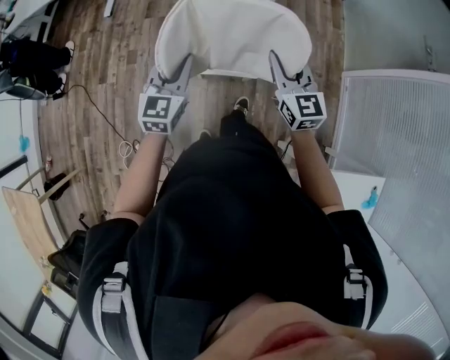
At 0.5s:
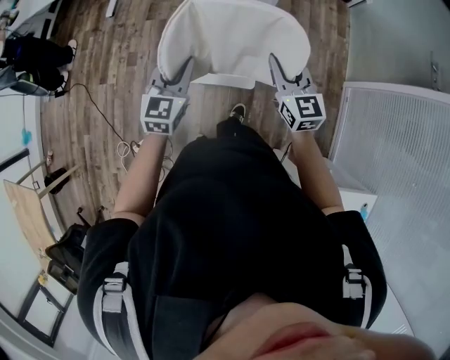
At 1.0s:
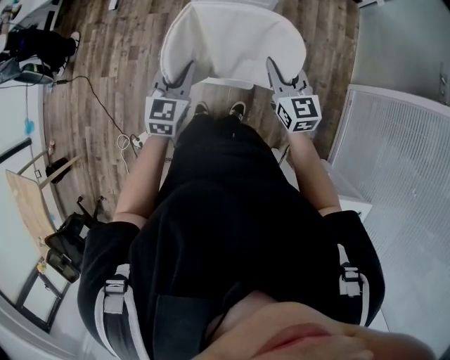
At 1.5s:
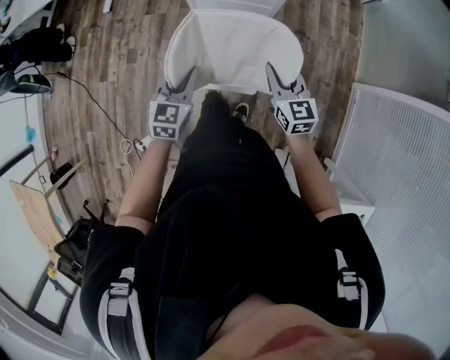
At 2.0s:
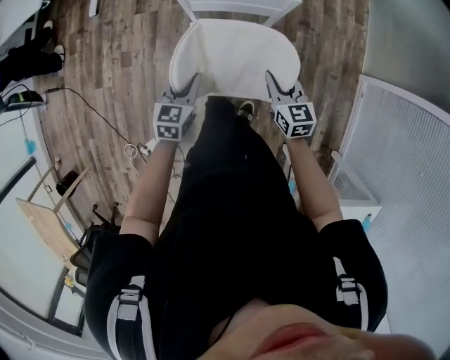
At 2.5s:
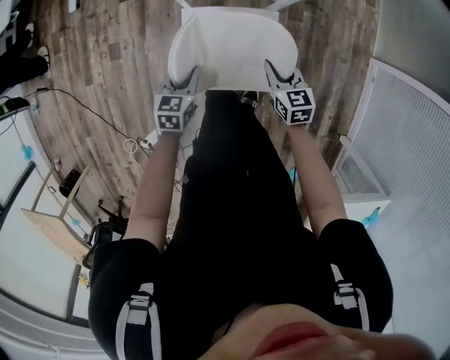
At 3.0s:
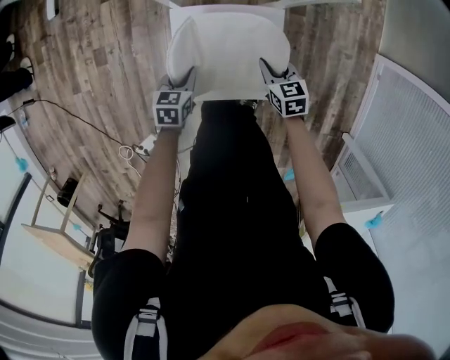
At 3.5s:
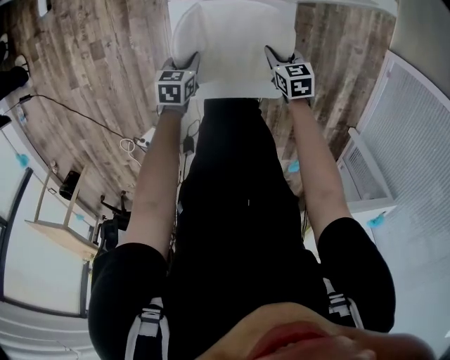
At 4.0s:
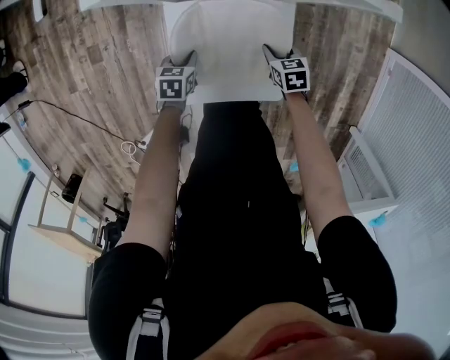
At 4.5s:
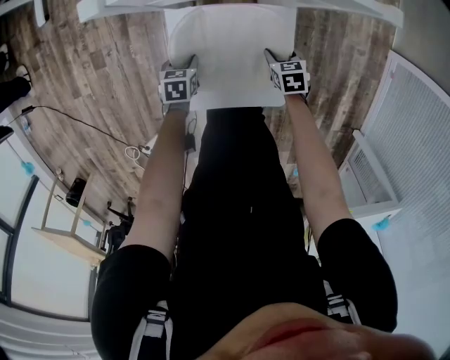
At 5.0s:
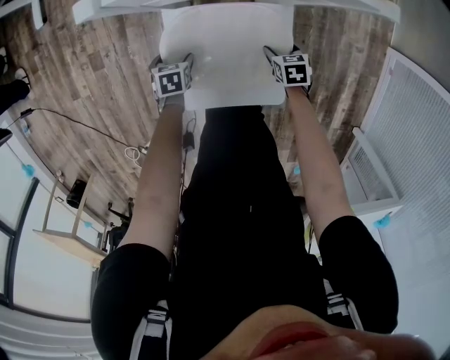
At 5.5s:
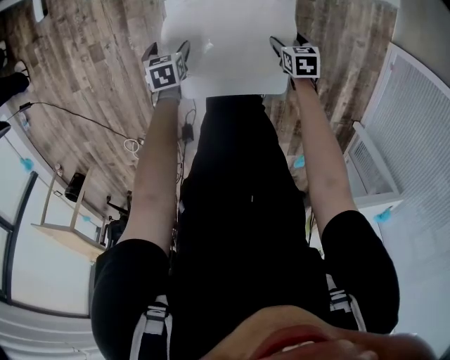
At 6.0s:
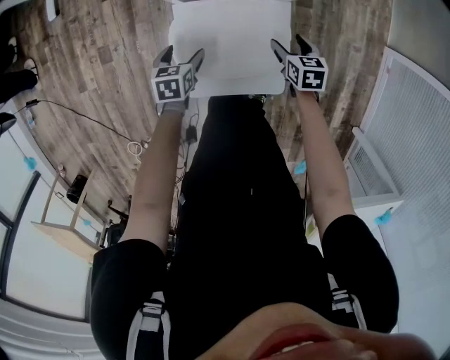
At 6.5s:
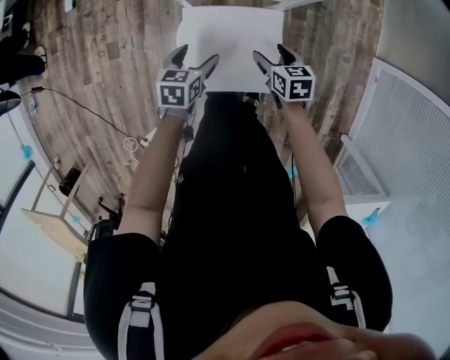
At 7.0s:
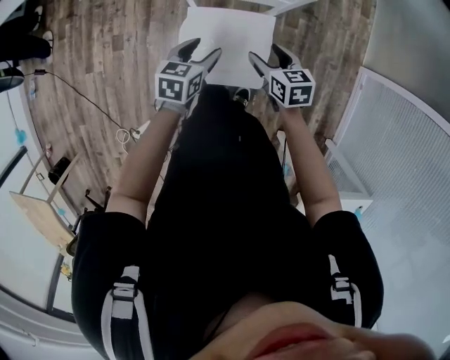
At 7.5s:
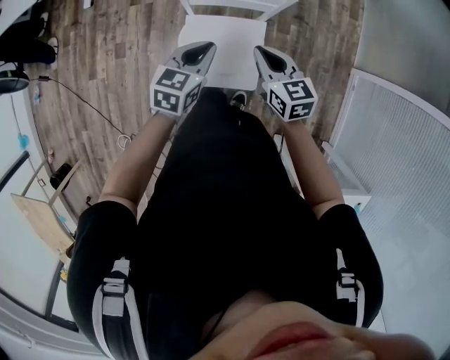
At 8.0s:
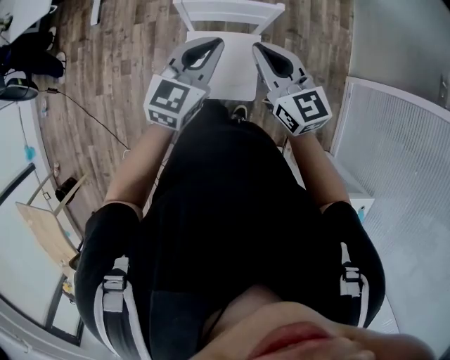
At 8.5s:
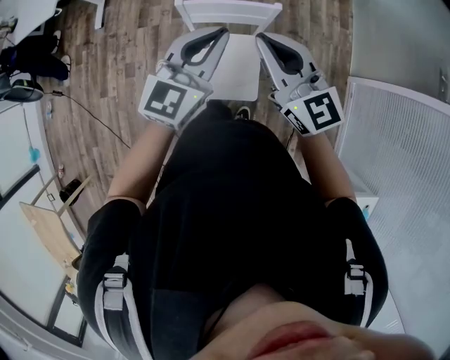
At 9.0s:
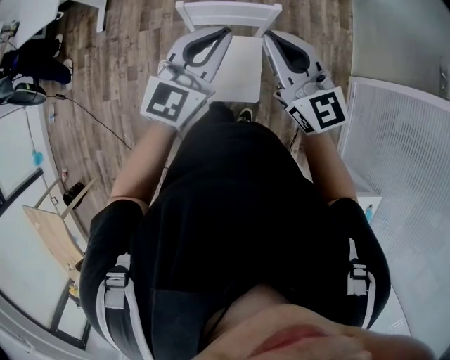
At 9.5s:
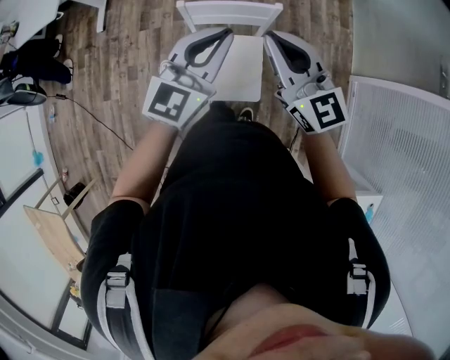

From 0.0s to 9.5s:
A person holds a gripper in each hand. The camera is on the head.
From 0.0s to 2.0s: The two grippers go some 30 cm downward and forward. The right gripper swivels approximately 20 degrees; the left gripper turns by approximately 20 degrees.
From 2.0s to 4.0s: Both grippers travel together downward, some 40 cm. The right gripper tips its fingers downward by roughly 30 degrees, while the left gripper changes its angle by some 30 degrees.
From 4.0s to 5.5s: The left gripper shifts by some 5 cm, and opens its fingers. The right gripper opens.
From 5.5s to 7.5s: Both grippers travel together upward, about 50 cm. The right gripper points its fingers about 40 degrees further upward, and closes, while the left gripper angles its fingers upward, by about 30 degrees, and closes.
From 7.5s to 9.5s: The two grippers go some 25 cm upward. The left gripper tips its fingers upward by approximately 30 degrees, while the right gripper tilts its fingers approximately 30 degrees upward.

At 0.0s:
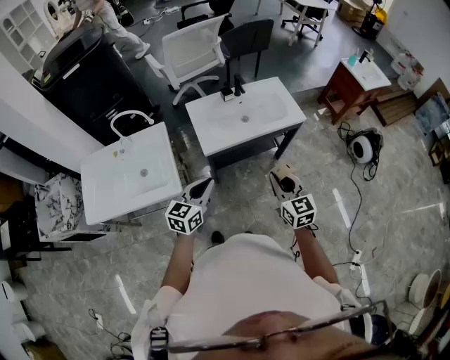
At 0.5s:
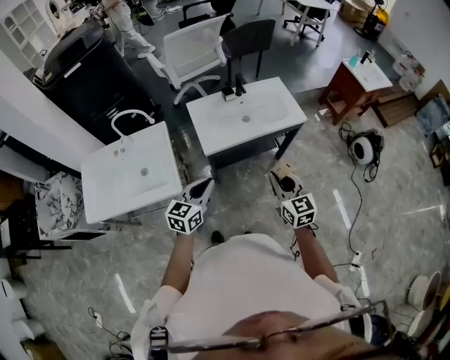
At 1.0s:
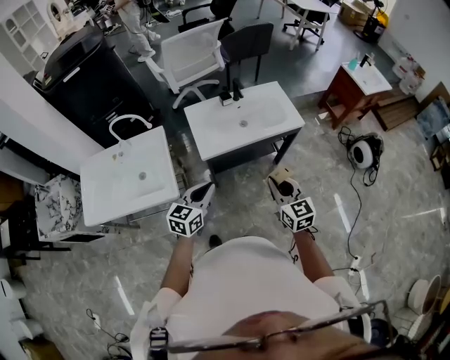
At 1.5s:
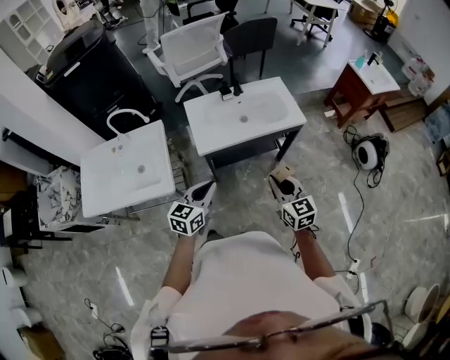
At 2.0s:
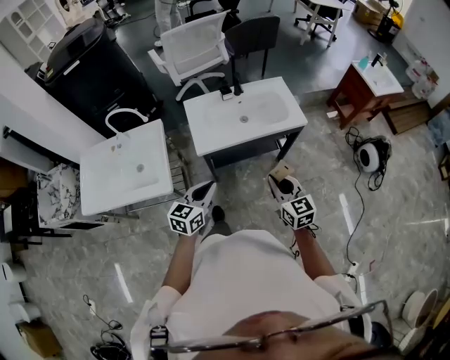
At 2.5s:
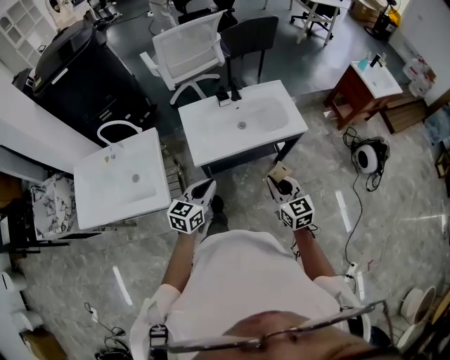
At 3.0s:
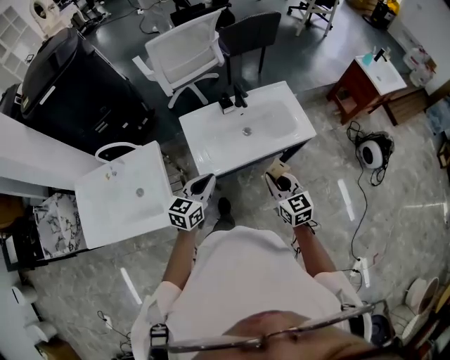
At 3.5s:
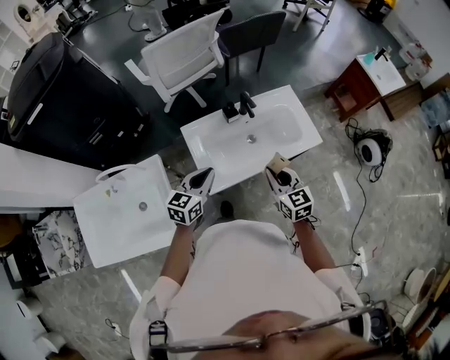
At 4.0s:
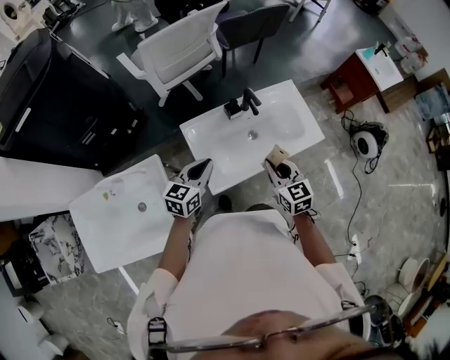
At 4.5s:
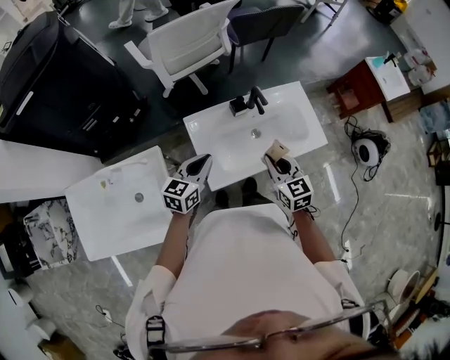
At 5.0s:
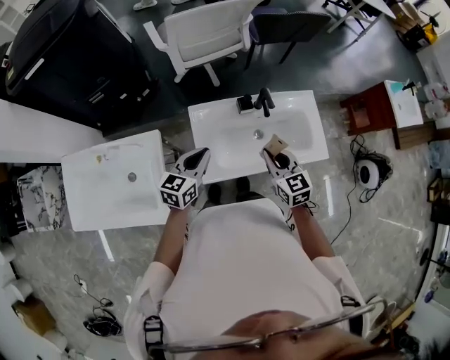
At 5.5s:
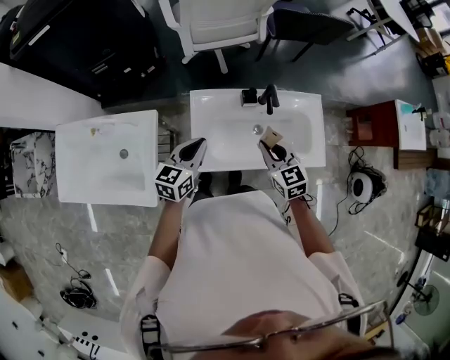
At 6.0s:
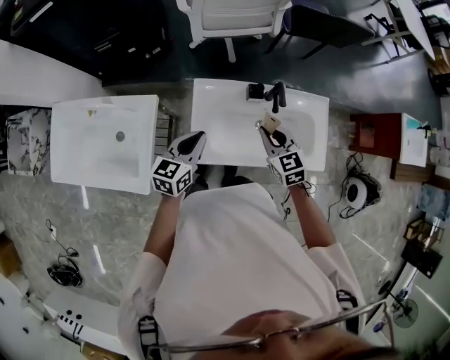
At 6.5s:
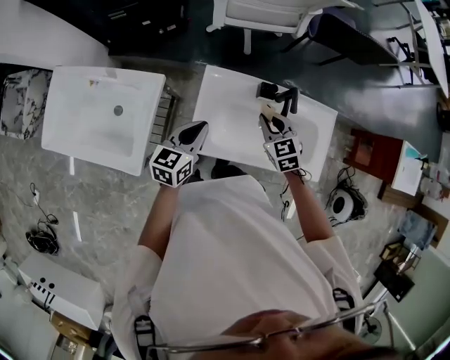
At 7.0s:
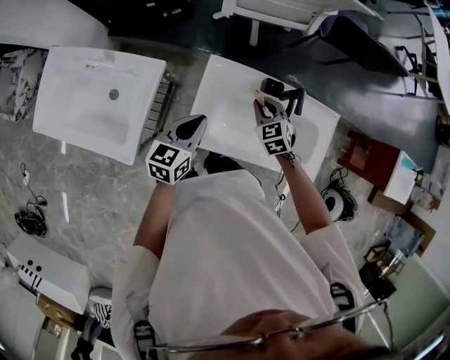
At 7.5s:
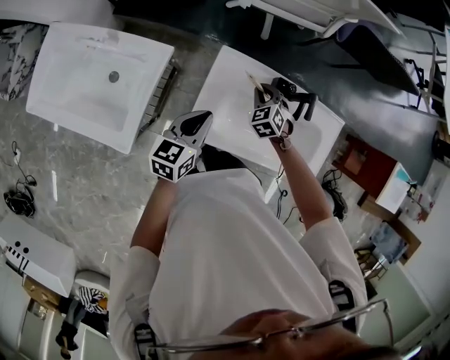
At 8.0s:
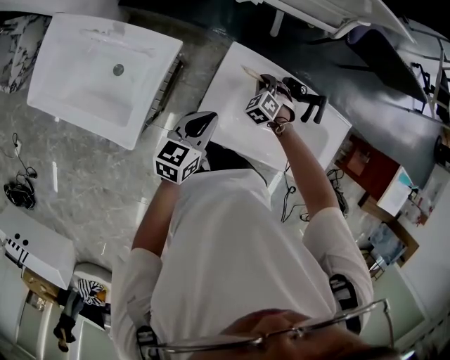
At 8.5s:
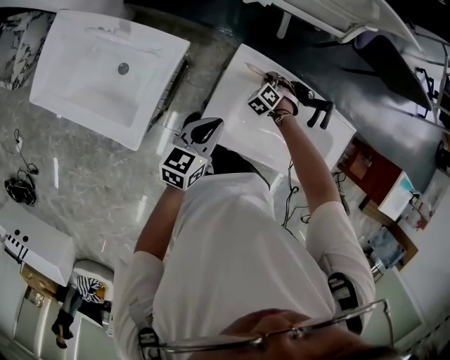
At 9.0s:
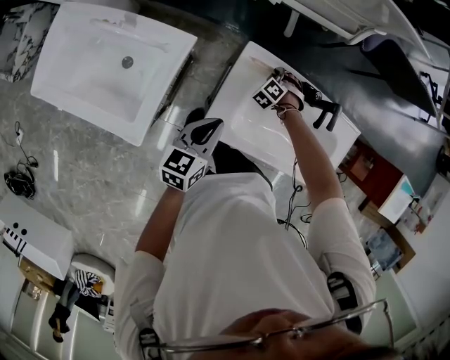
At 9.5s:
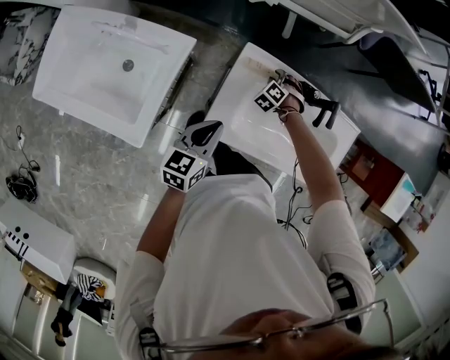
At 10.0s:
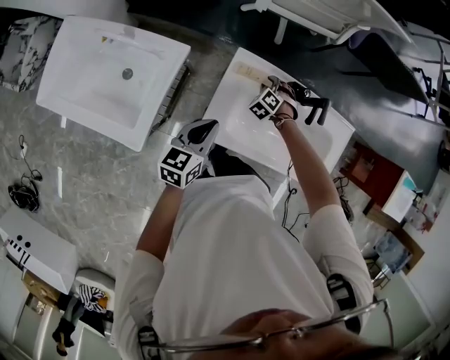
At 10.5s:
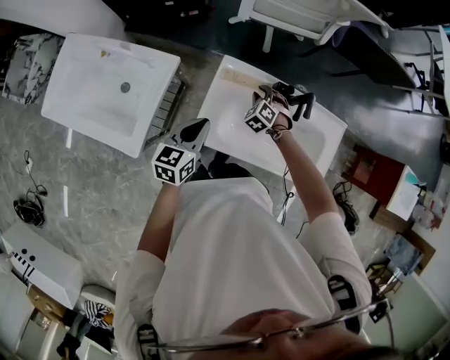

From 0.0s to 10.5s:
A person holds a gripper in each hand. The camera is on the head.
From 0.0s to 2.0s: Both grippers move to the right, roughly 5 cm.
From 2.0s to 4.0s: Both grippers travel together forward and to the left, about 35 cm.
From 4.0s to 6.5s: The right gripper ends up roughly 20 cm from where it was, and swivels roughly 40 degrees. The left gripper changes its angle by approximately 30 degrees.
From 6.5s to 8.5s: The right gripper heads downward and forward, covering some 25 cm, and changes its angle by roughly 50 degrees; the left gripper goes approximately 5 cm downward.
From 8.5s to 10.5s: The right gripper heads upward, covering about 10 cm.

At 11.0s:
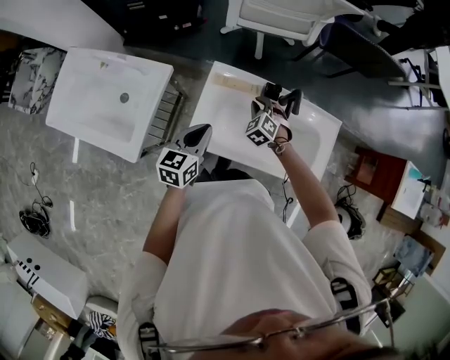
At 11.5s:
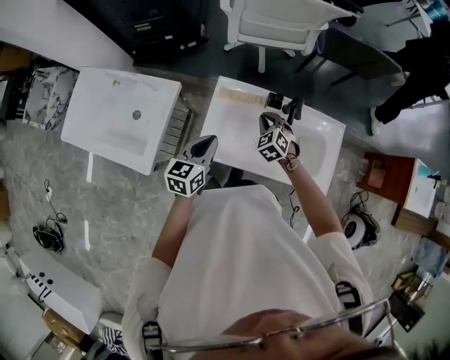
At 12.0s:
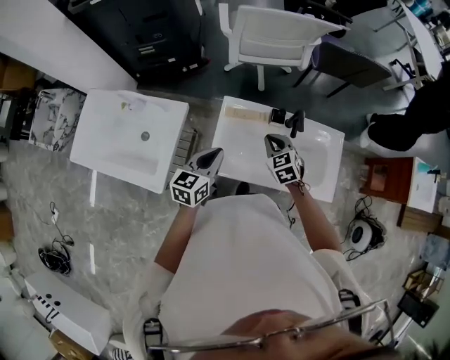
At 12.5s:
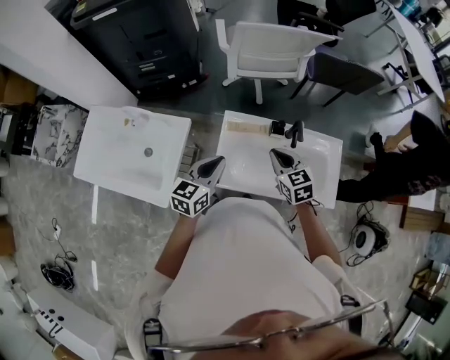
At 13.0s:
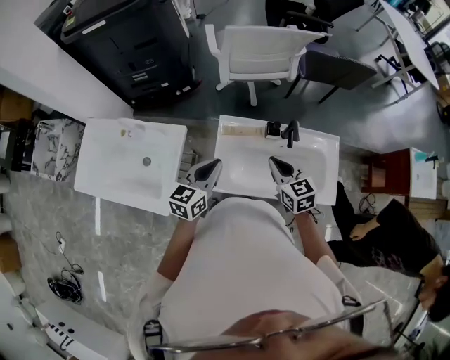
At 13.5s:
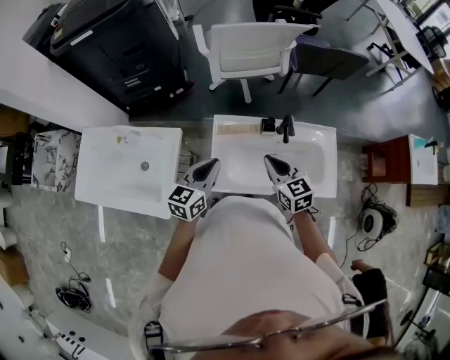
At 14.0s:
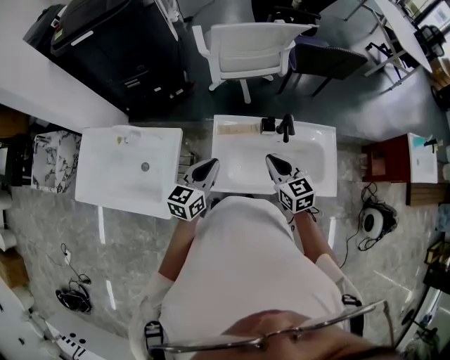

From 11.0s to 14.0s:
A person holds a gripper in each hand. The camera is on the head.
From 11.0s to 12.5s: The left gripper travels upward by some 10 cm; the right gripper moves upward and backward, some 20 cm, and changes its angle by about 40 degrees.
From 12.5s to 14.0s: The grippers move only a little.

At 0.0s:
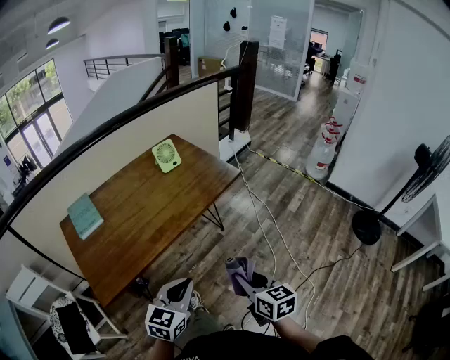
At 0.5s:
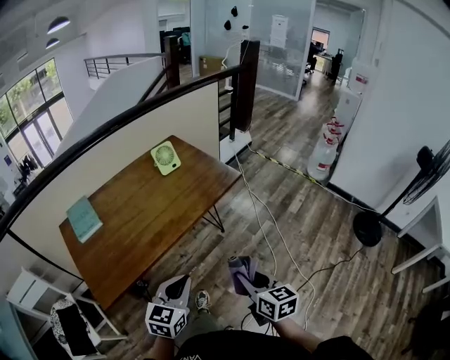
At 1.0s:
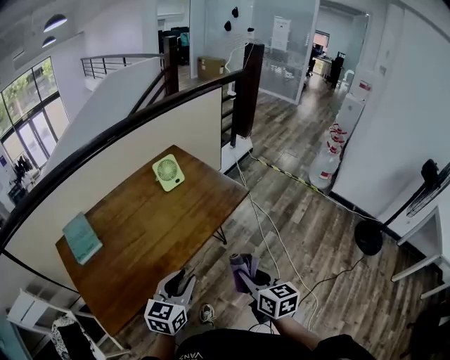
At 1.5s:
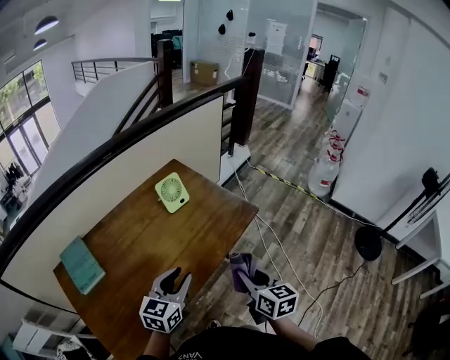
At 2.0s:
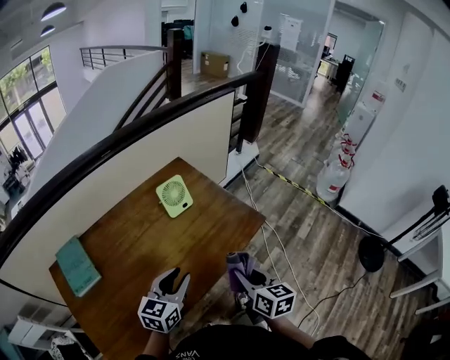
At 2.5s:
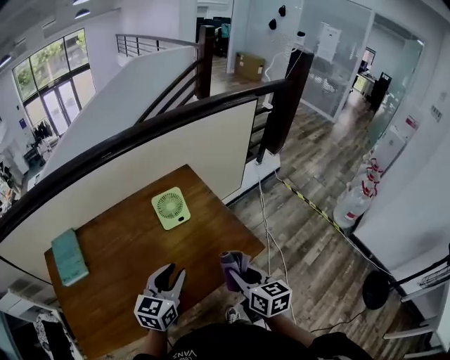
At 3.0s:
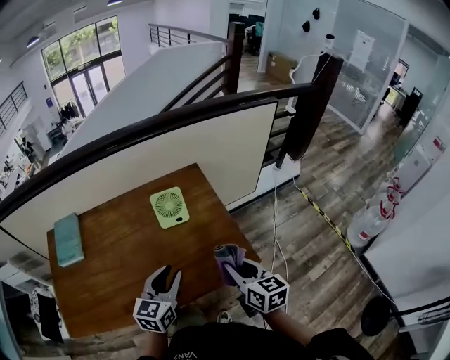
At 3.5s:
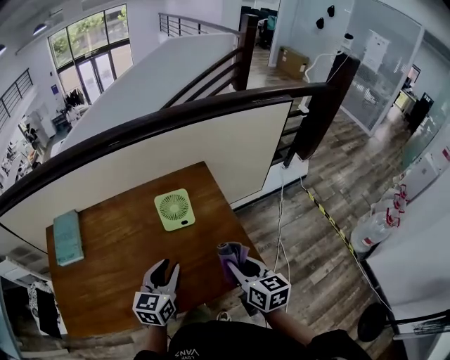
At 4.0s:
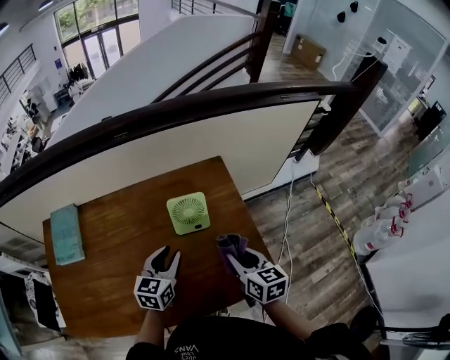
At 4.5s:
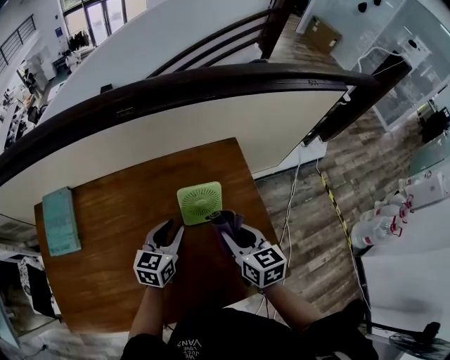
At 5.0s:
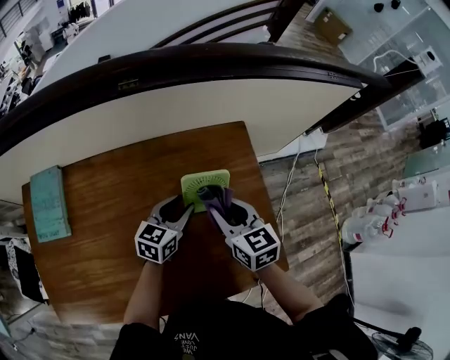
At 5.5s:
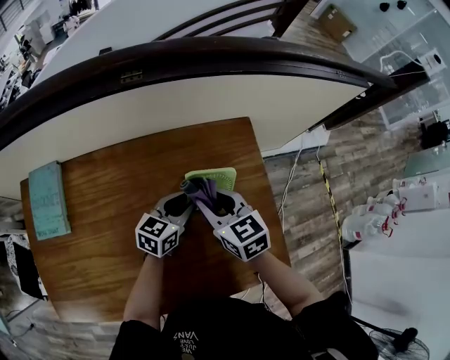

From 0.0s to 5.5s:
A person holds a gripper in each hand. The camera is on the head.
From 0.0s to 2.0s: The grippers both shift forward by some 35 cm. The left gripper opens up.
From 2.0s to 3.5s: The right gripper moves approximately 20 cm, and changes its angle by about 30 degrees. The left gripper moves some 15 cm, and changes its angle by roughly 30 degrees.
From 3.5s to 5.5s: The right gripper goes about 30 cm forward and to the left, and turns by roughly 30 degrees, while the left gripper shifts roughly 25 cm forward and downward.
